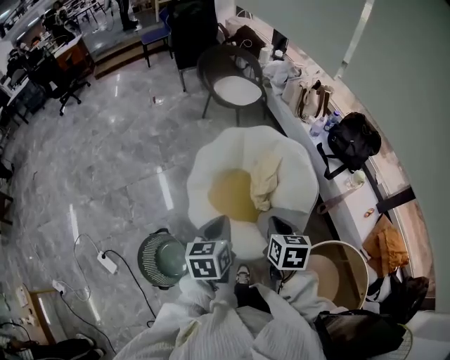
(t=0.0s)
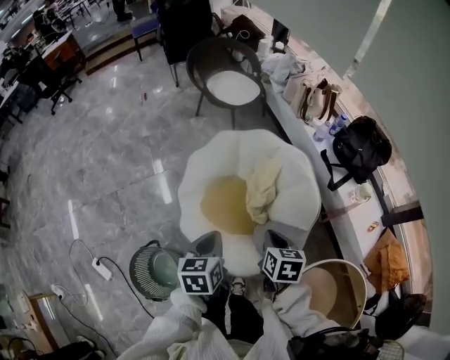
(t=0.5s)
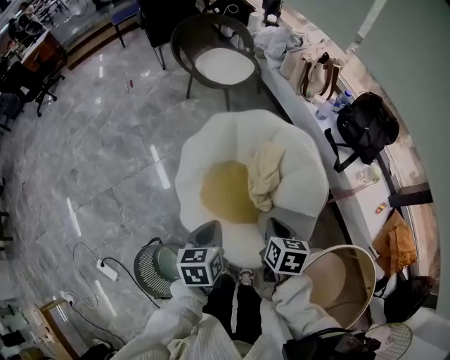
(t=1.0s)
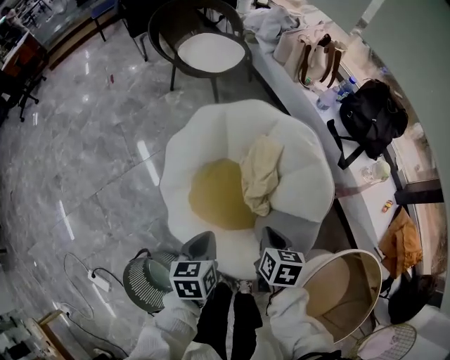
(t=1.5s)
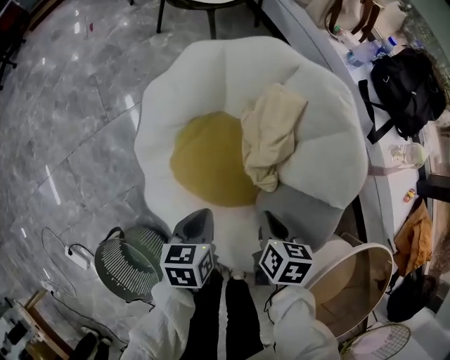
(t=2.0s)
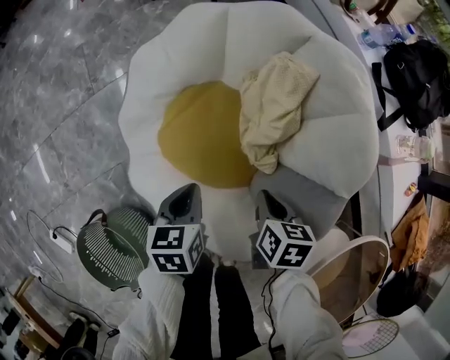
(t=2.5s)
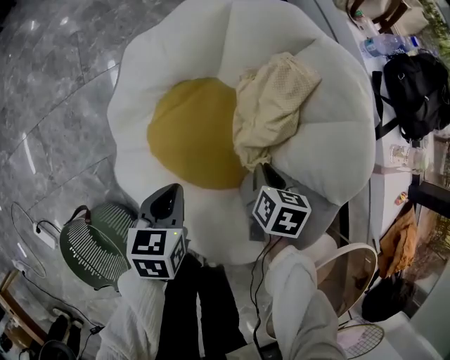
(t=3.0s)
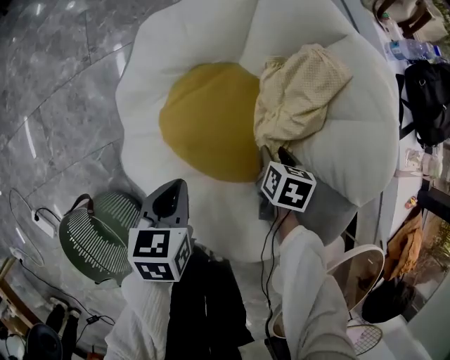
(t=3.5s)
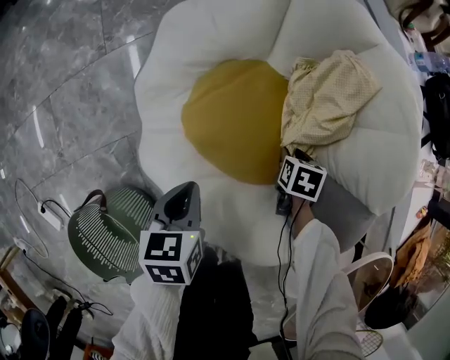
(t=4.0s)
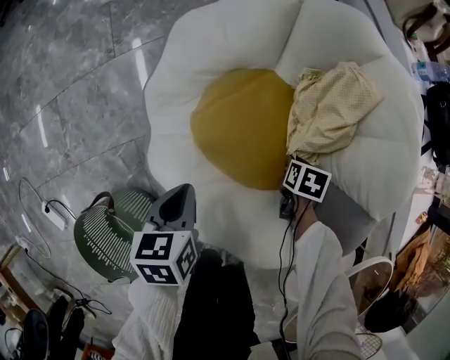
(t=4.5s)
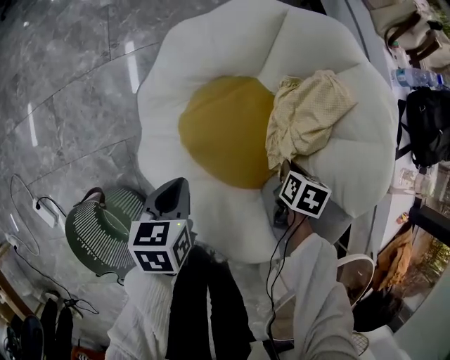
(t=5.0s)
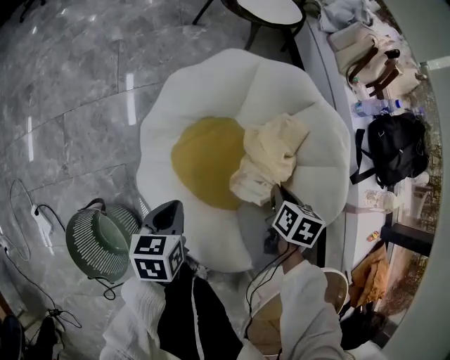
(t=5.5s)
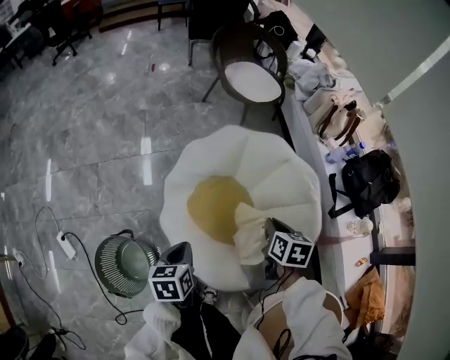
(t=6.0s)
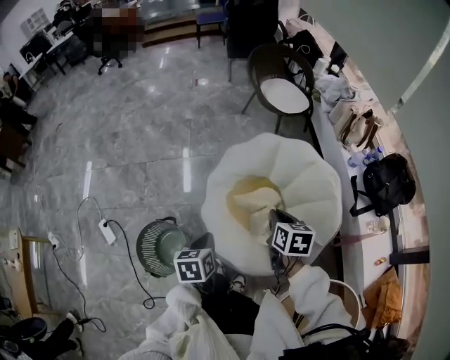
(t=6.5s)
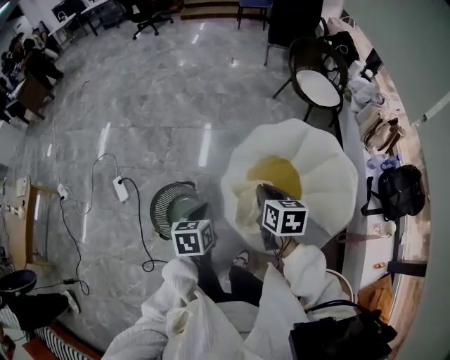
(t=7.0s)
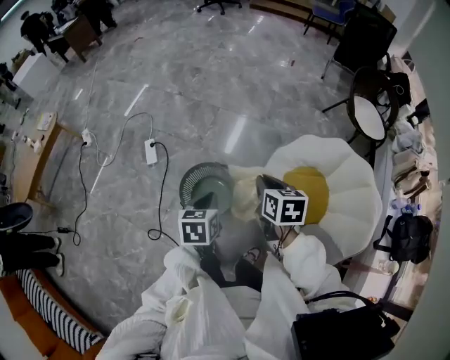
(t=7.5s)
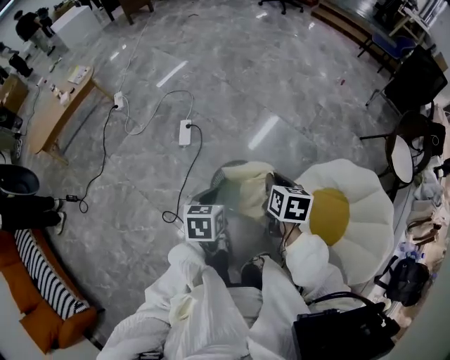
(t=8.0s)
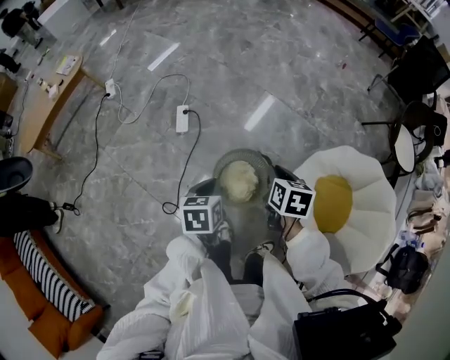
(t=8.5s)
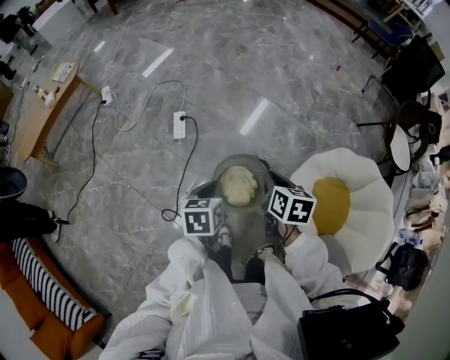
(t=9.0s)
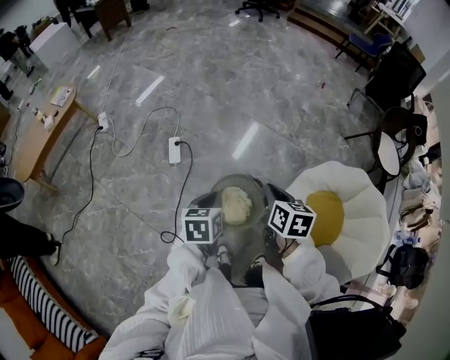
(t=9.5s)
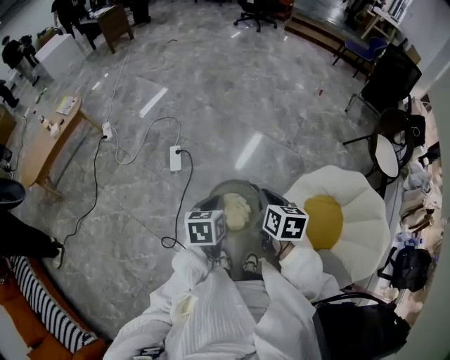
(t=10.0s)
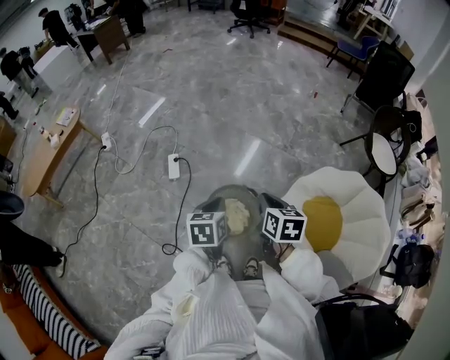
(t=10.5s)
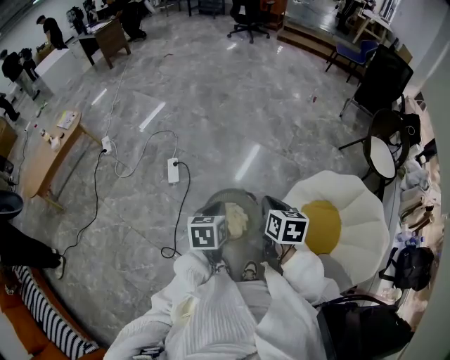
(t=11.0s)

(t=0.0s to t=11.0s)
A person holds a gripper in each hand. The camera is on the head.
t=0.0s - t=2.0s: Both grippers travel together downward, about 35 cm. The right gripper swivels approximately 20 degrees; the left gripper swivels about 20 degrees.
t=2.0s - t=3.5s: The left gripper shifts some 10 cm downward and to the left, while the right gripper is displaced downward and forward by some 20 cm, and opens its fingers.
t=3.5s - t=5.5s: The left gripper goes approximately 10 cm upward, while the right gripper travels upward by roughly 20 cm, and closes.
t=5.5s - t=7.5s: The right gripper changes place by some 60 cm, and rotates some 60 degrees; the left gripper shifts by some 50 cm, and turns by roughly 40 degrees.
t=7.5s - t=9.0s: Both grippers move to the left, about 20 cm.
t=9.0s - t=11.0s: Both grippers move to the right and upward, some 10 cm.

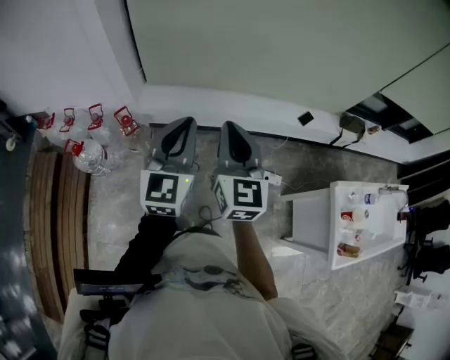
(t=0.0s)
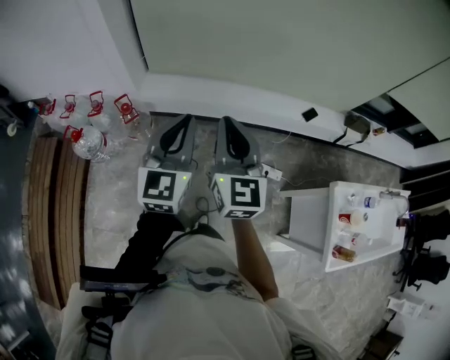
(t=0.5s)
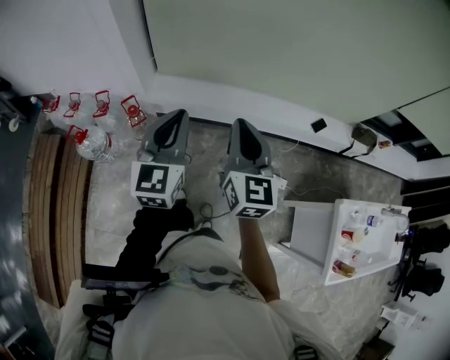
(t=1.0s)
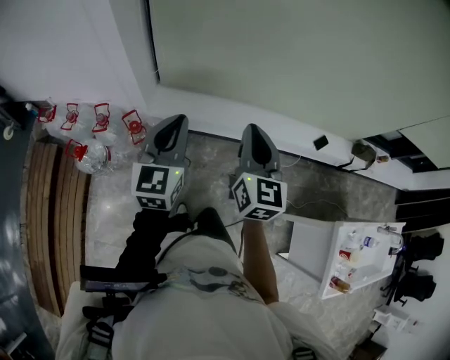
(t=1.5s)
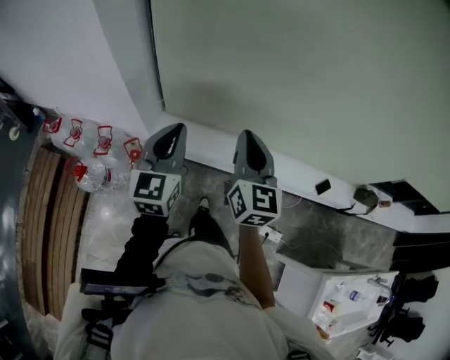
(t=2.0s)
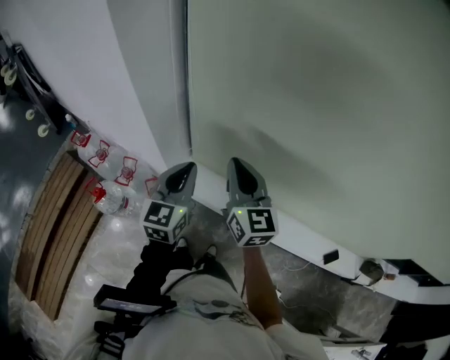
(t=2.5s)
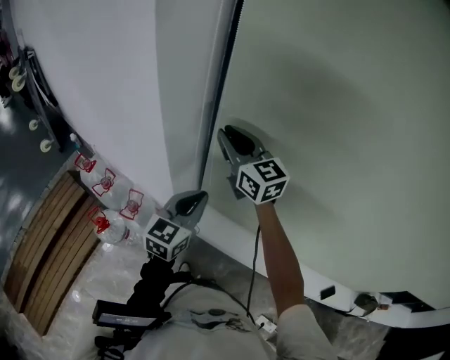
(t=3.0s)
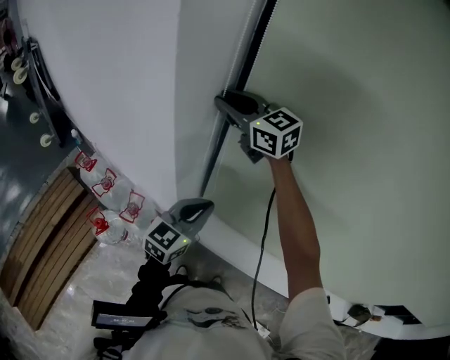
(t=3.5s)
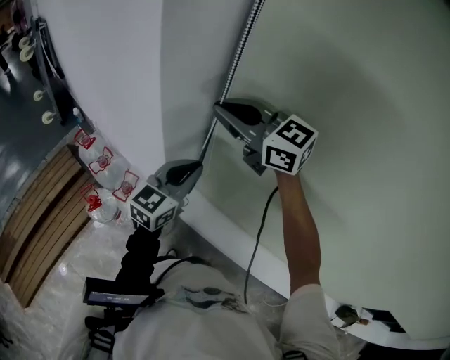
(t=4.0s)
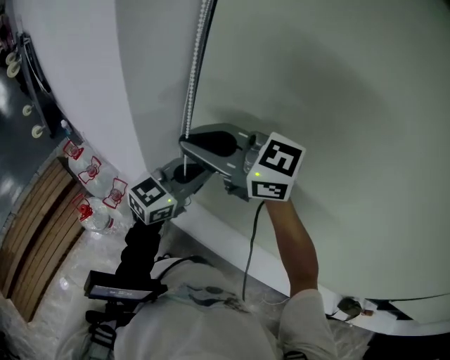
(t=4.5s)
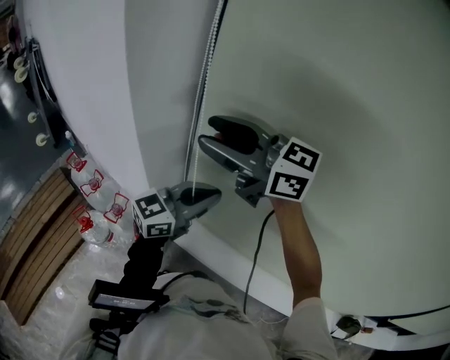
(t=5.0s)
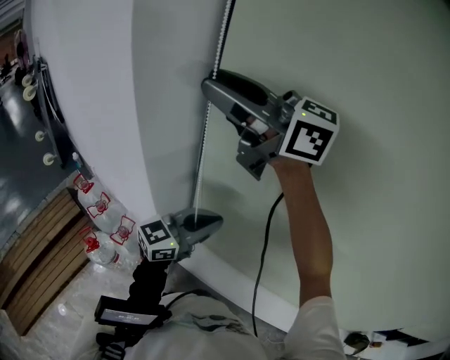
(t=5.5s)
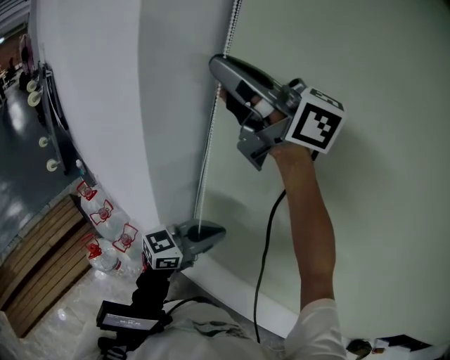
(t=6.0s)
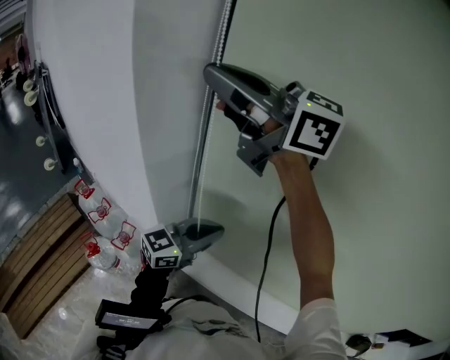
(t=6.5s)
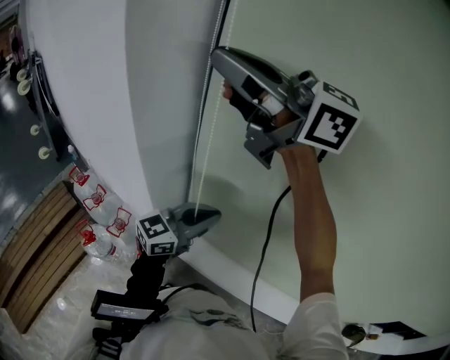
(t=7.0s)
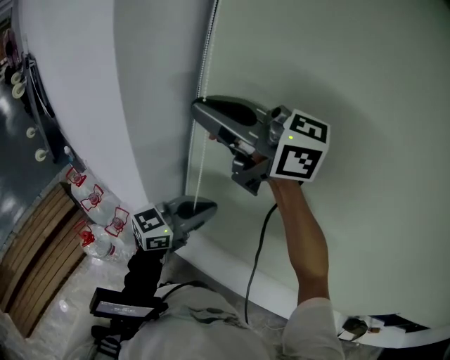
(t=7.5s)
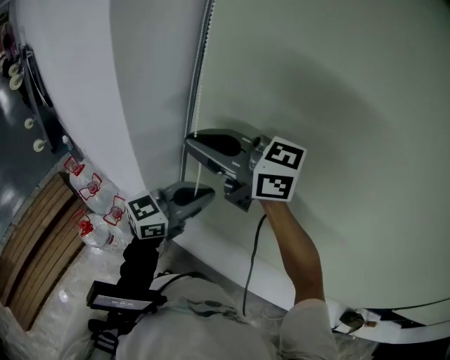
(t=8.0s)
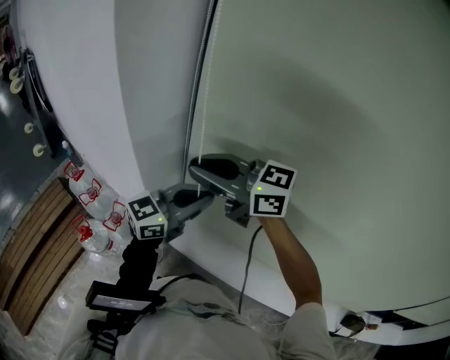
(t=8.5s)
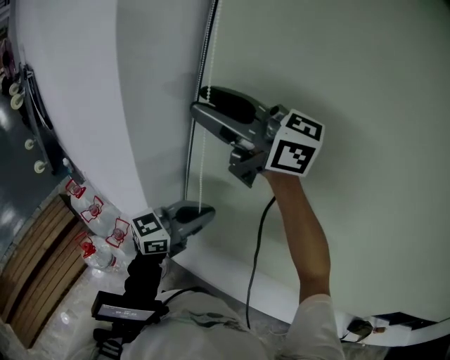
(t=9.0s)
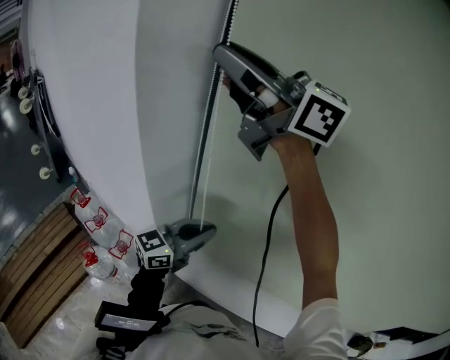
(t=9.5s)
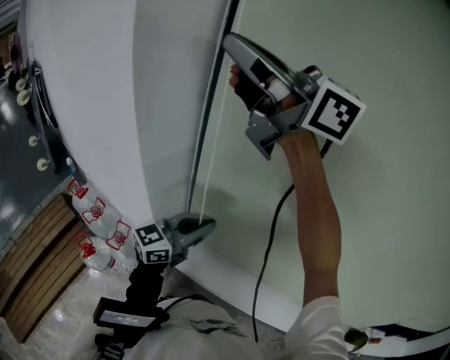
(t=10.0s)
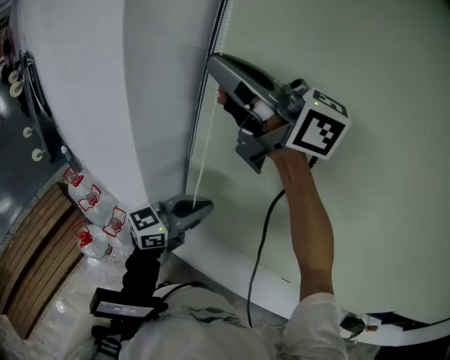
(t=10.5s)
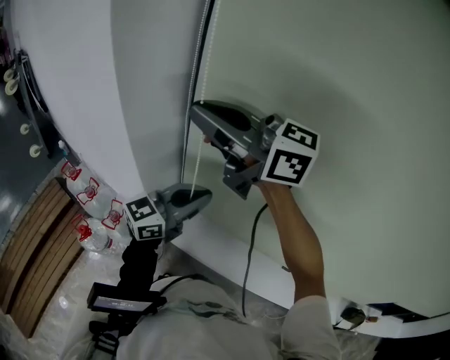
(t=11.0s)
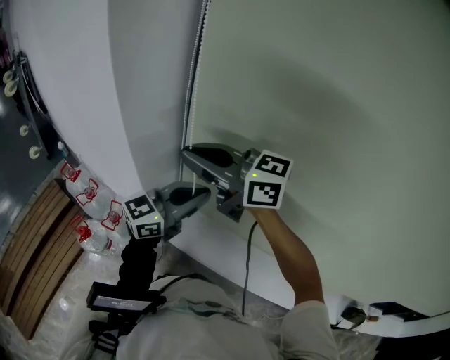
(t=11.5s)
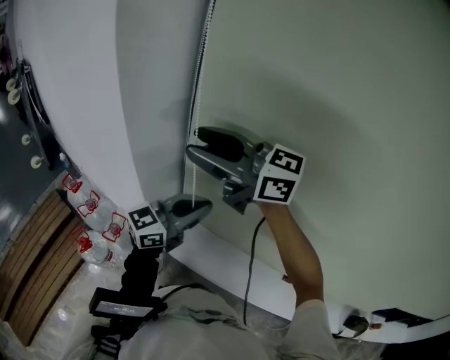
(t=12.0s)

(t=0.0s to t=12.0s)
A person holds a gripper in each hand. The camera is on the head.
t=0.0s - t=2.0s: The right gripper goes about 30 cm forward, while the left gripper moves forward and to the left, some 30 cm.
t=2.0s - t=4.0s: The left gripper changes place by roughly 25 cm, while the right gripper shifts by approximately 40 cm, swivels about 80 degrees, and opens, then closes once more.
t=4.0s - t=6.0s: The left gripper ends up approximately 10 cm from where it was, and swivels approximately 30 degrees; the right gripper heads upward, covering roughly 25 cm, rotates about 20 degrees, and opens, then closes again.
t=6.0s - t=8.0s: The right gripper goes approximately 20 cm downward.
t=8.0s - t=10.0s: The right gripper goes approximately 25 cm upward, and opens and closes again.
t=10.0s - t=12.0s: The right gripper goes roughly 20 cm downward, and opens up.

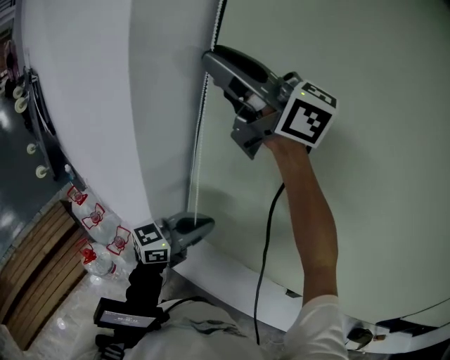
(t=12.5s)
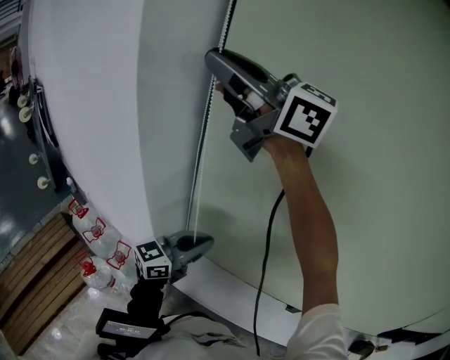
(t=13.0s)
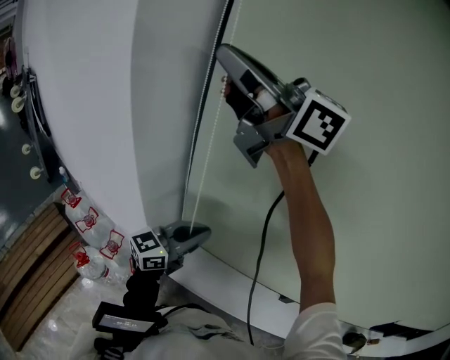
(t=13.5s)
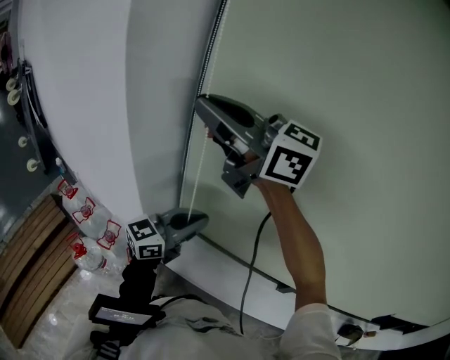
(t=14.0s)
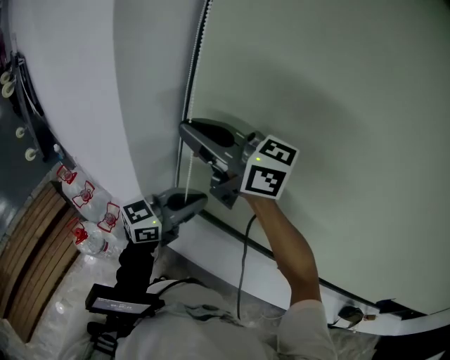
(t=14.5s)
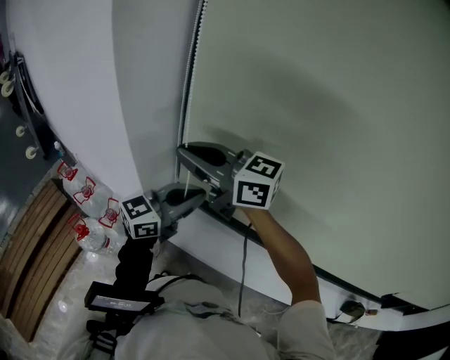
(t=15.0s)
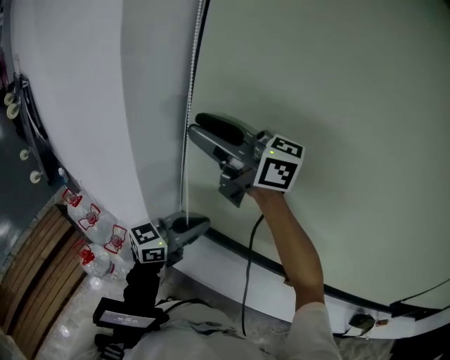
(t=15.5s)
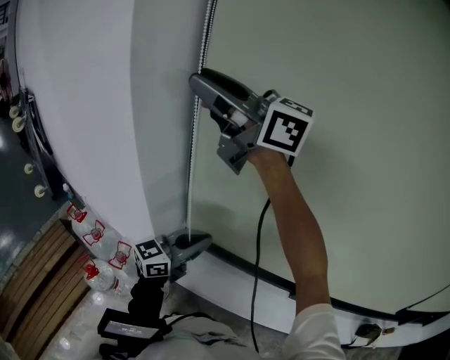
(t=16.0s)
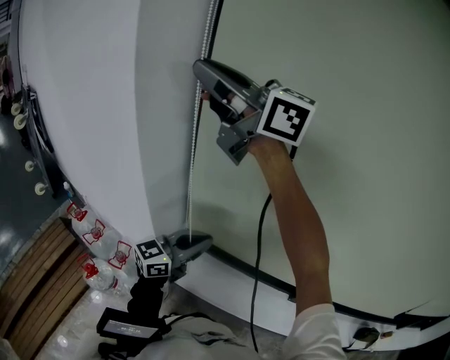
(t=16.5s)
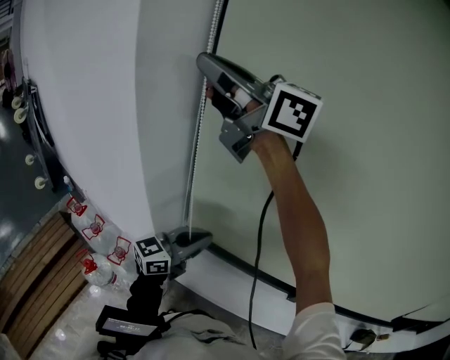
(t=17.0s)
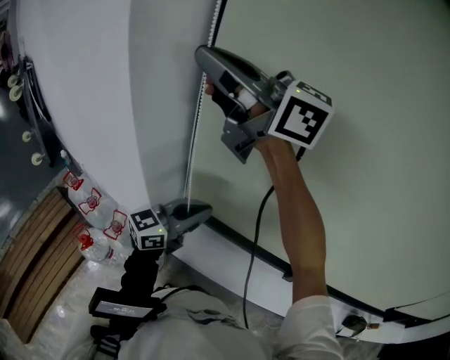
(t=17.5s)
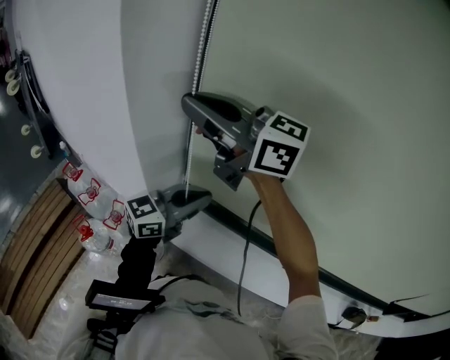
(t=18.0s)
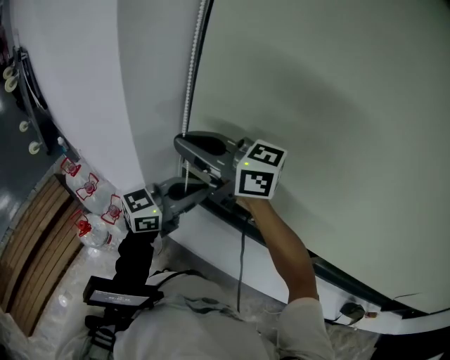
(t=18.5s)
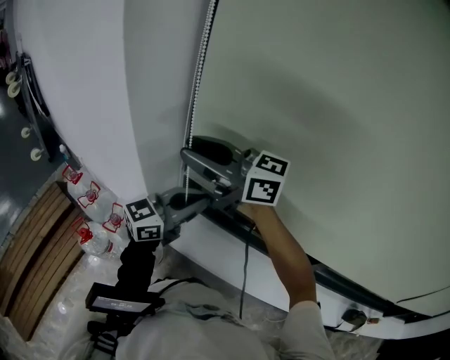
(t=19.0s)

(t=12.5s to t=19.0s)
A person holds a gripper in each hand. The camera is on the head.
t=12.5s - t=14.5s: The right gripper moves downward, approximately 20 cm, and closes.
t=14.5s - t=17.0s: The right gripper shifts about 20 cm upward, and opens, then closes once more.
t=17.0s - t=19.0s: The right gripper moves downward, approximately 25 cm, and opens.
